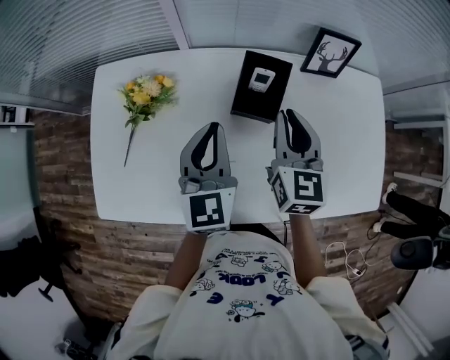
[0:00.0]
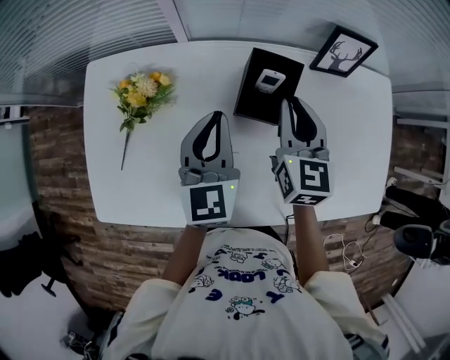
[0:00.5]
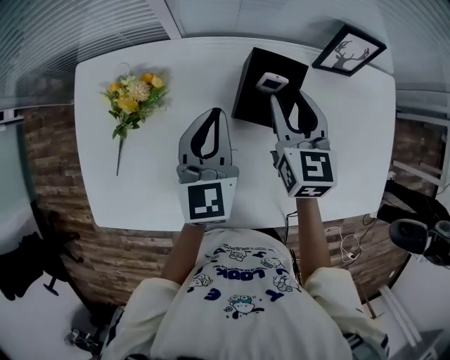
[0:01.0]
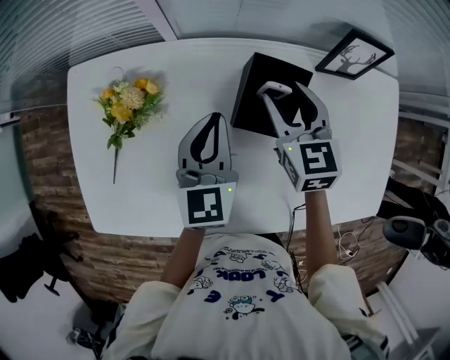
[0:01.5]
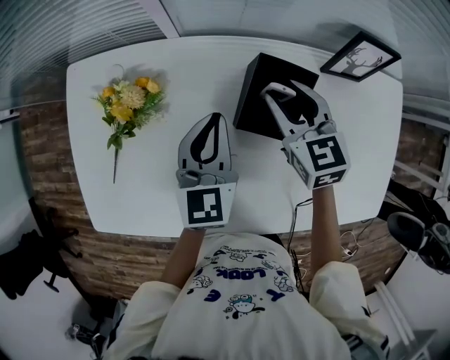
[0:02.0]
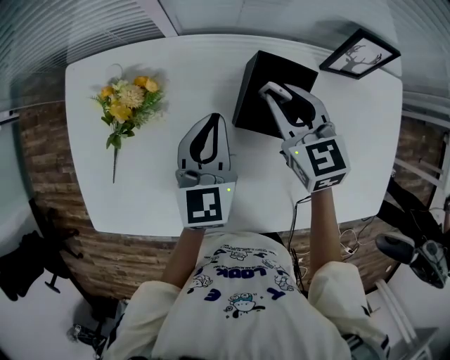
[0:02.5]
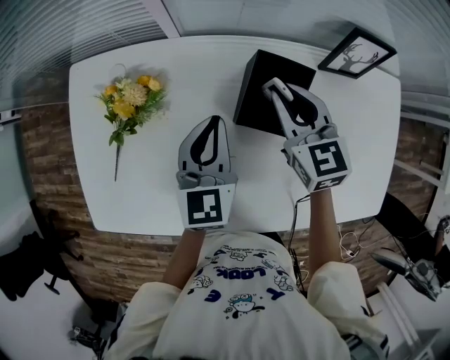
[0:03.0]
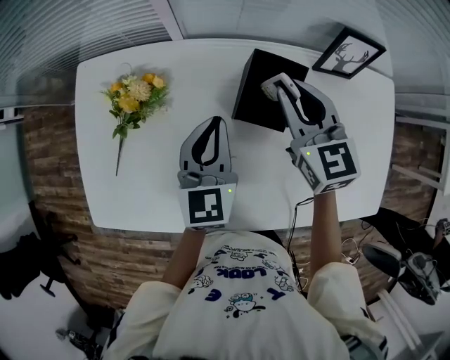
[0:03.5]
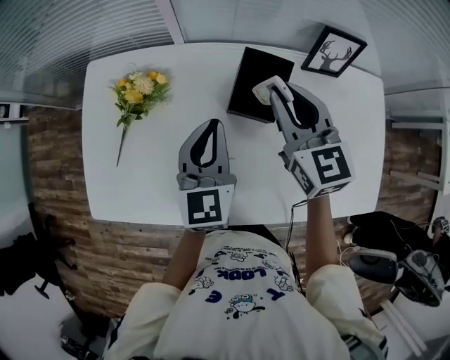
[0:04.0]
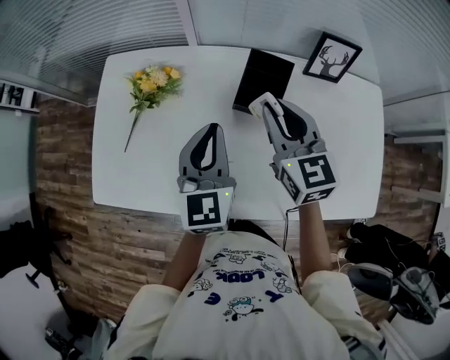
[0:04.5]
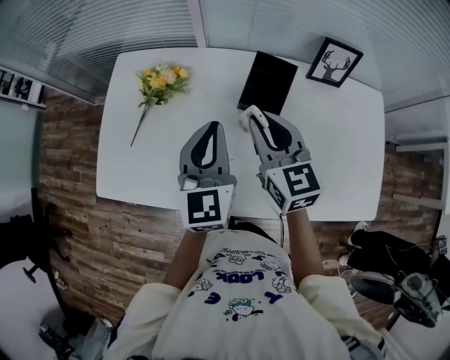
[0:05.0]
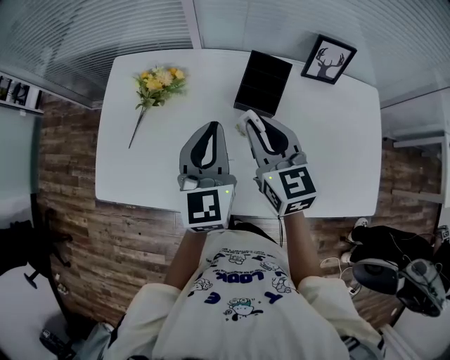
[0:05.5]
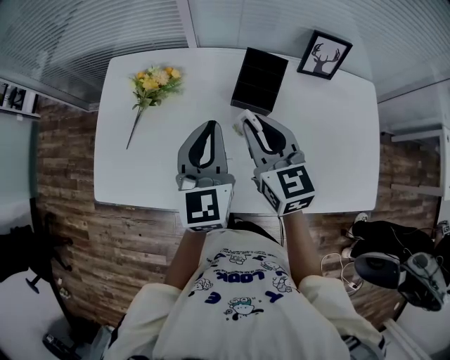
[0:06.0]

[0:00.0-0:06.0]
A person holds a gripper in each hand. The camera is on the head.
0:00.0 to 0:02.0: The grippers both shift forward and downward by roughly 15 cm. The right gripper changes its angle by some 30 degrees, and opens up.
0:02.0 to 0:04.0: The left gripper shifts roughly 10 cm backward and upward; the right gripper heads upward and backward, covering roughly 15 cm, and closes up.
0:04.0 to 0:06.0: The left gripper is displaced backward and upward by some 10 cm. The right gripper heads backward and to the left, covering some 15 cm.

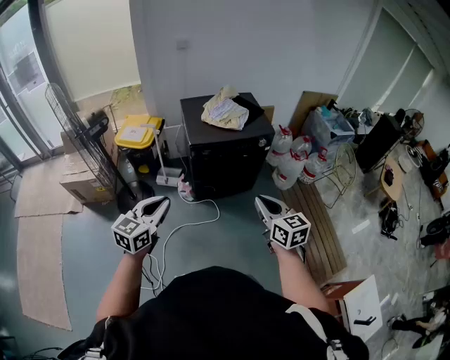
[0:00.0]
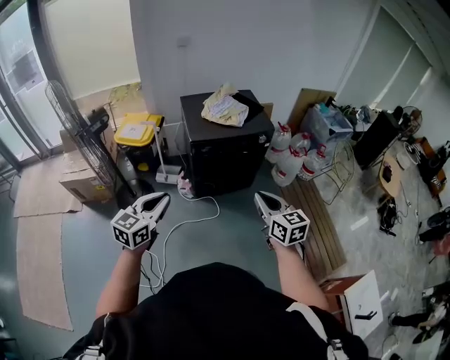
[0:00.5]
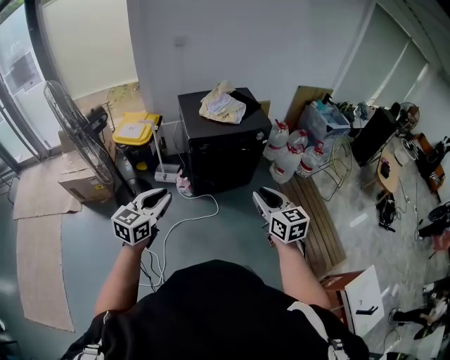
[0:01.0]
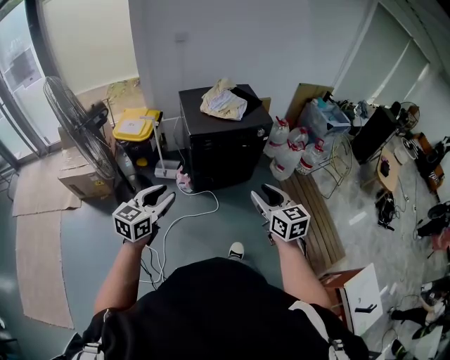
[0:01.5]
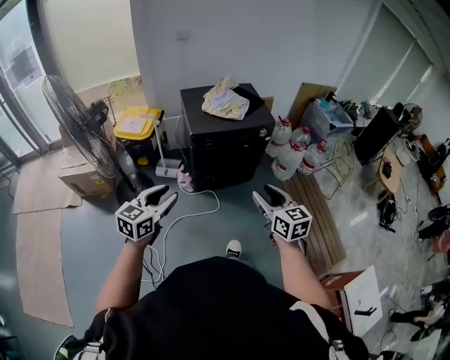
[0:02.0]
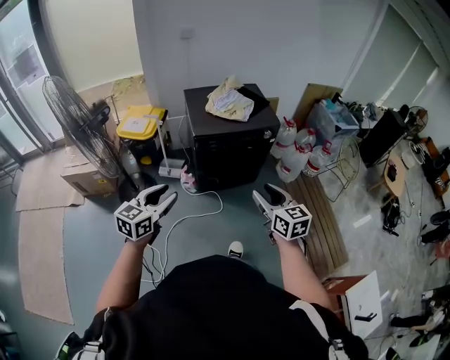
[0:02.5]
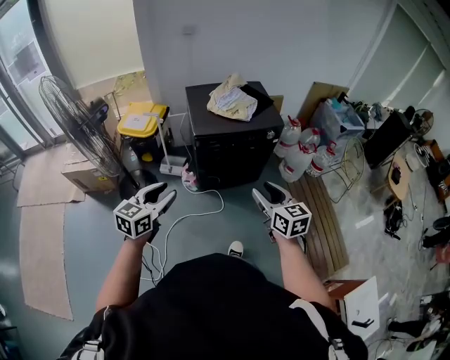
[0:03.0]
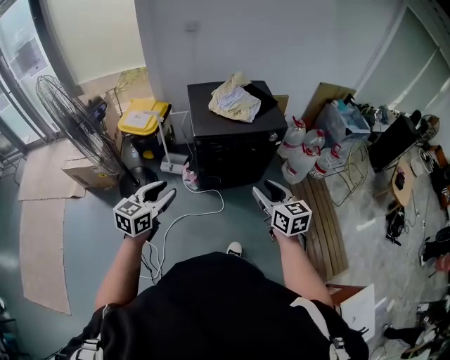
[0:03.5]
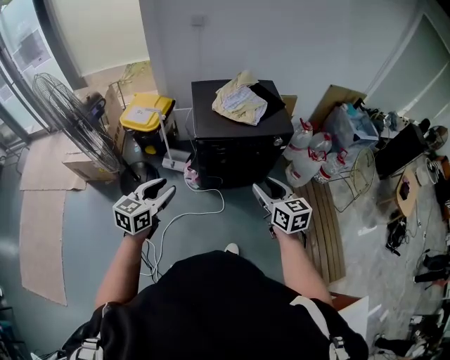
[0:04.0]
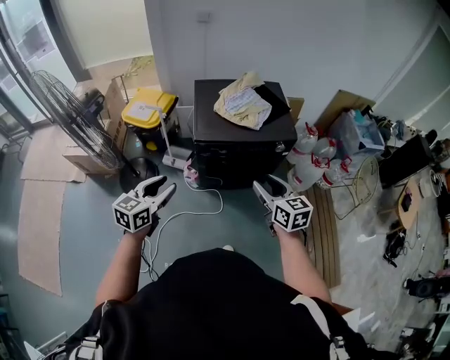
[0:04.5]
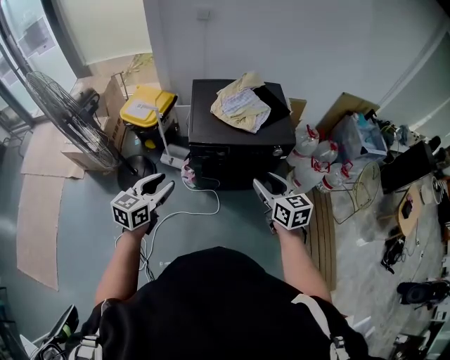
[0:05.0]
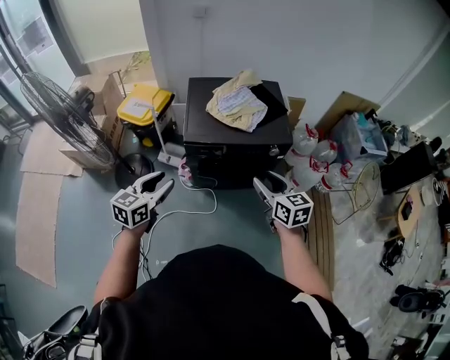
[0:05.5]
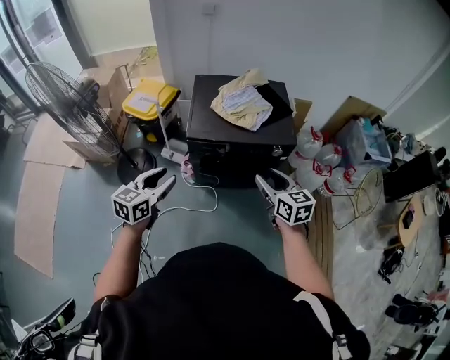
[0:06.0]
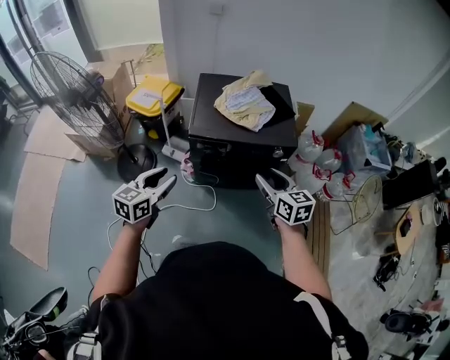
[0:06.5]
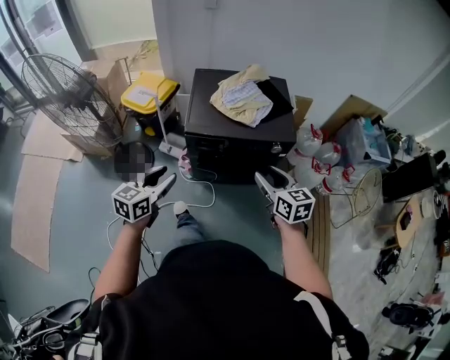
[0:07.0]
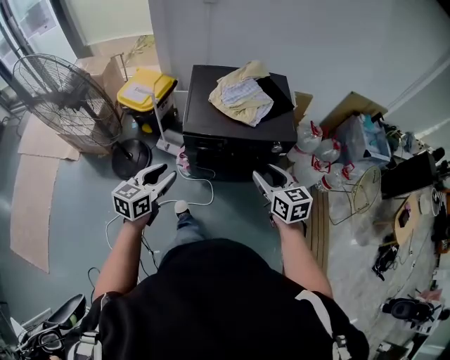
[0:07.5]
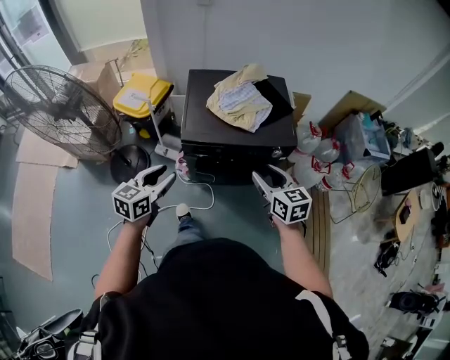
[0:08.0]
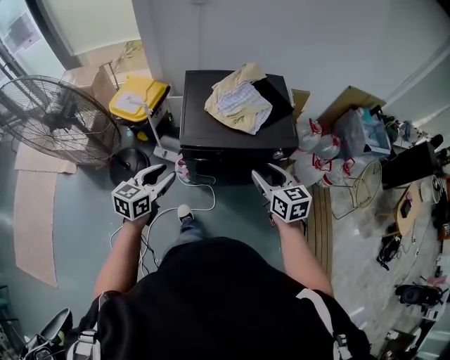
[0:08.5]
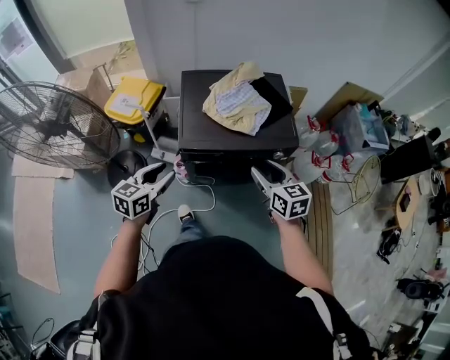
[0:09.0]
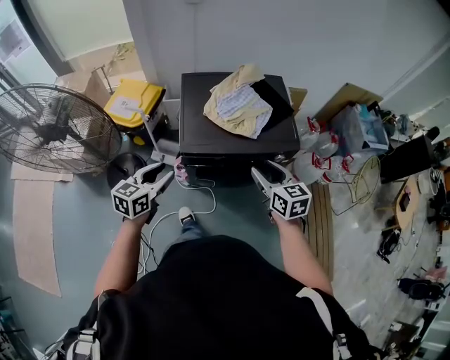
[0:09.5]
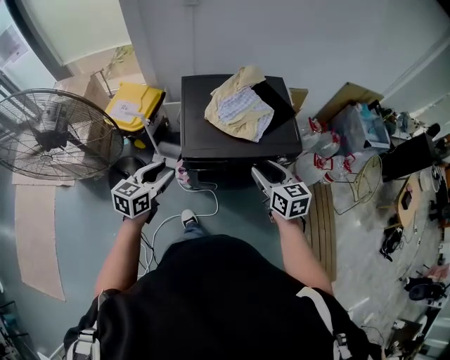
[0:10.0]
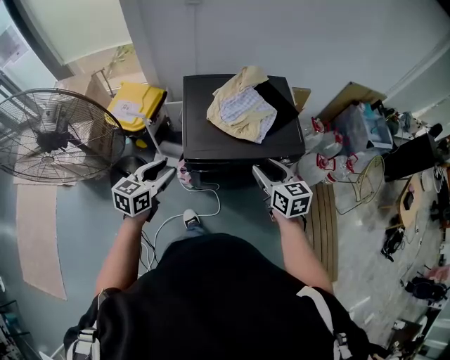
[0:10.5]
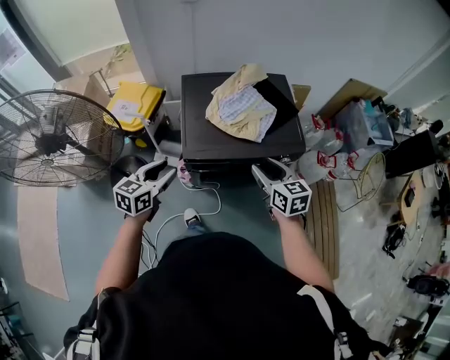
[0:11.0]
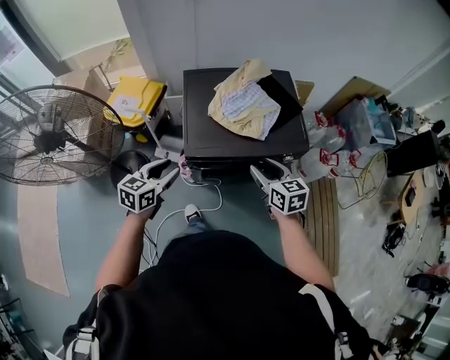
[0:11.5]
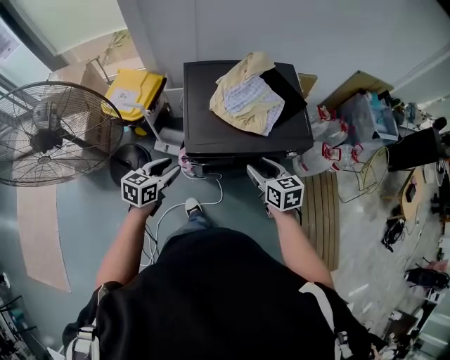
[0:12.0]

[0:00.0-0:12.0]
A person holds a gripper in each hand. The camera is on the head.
0:00.0 to 0:02.0: The right gripper opens; the left gripper opens up.
0:02.0 to 0:04.0: The grippers both shift forward by roughly 15 cm.
0:04.0 to 0:06.0: The right gripper is displaced forward and to the right by roughly 15 cm; the left gripper goes about 10 cm to the right and forward.
0:06.0 to 0:08.0: Both grippers travel together forward, roughly 5 cm.
0:08.0 to 0:10.0: The two grippers go some 10 cm forward.
0:10.0 to 0:12.0: Both grippers travel together downward, some 10 cm.

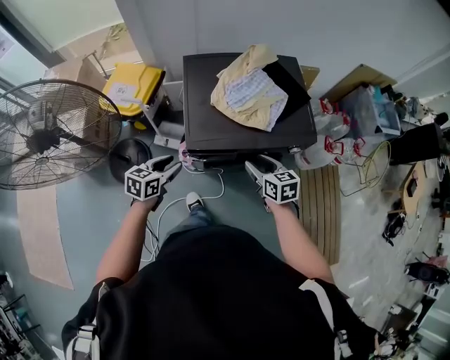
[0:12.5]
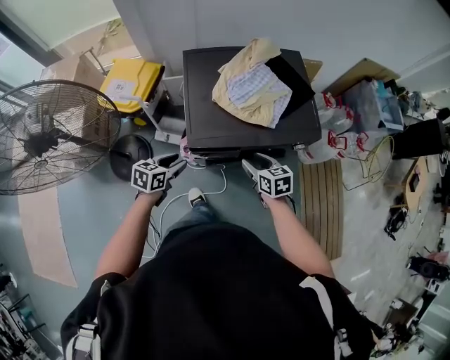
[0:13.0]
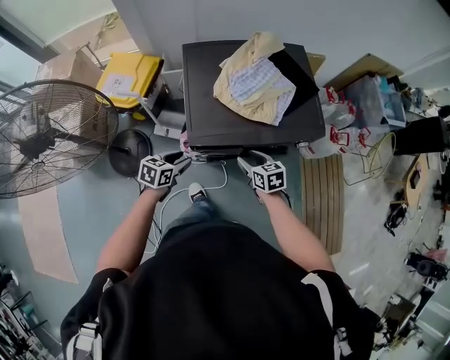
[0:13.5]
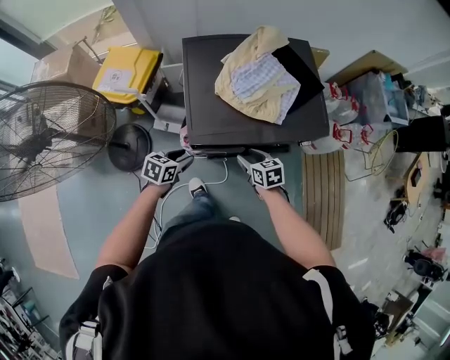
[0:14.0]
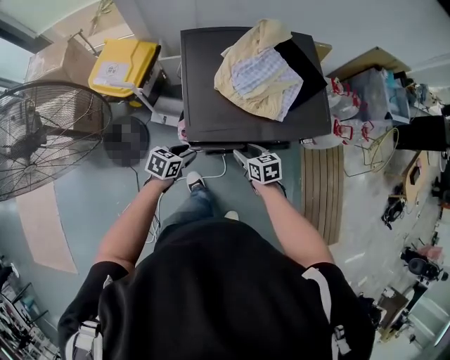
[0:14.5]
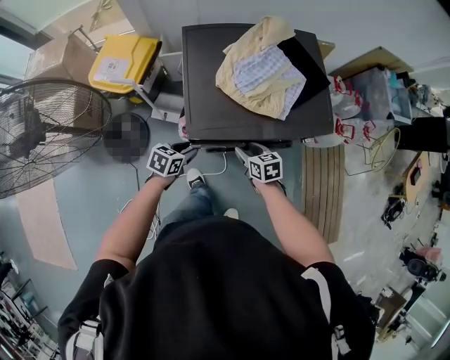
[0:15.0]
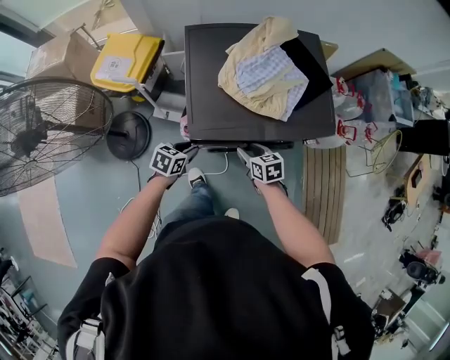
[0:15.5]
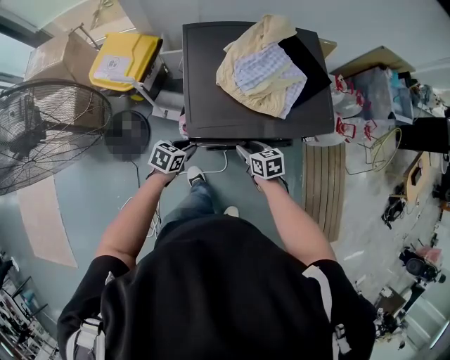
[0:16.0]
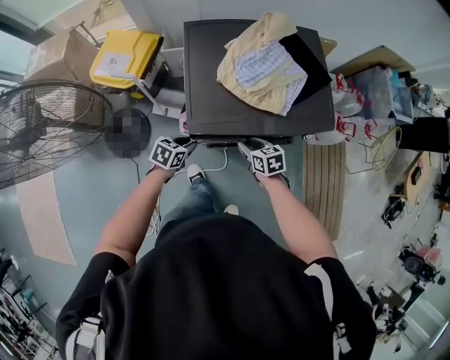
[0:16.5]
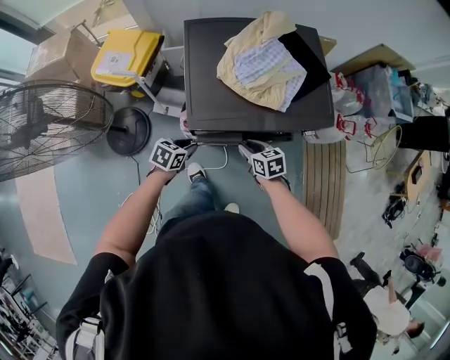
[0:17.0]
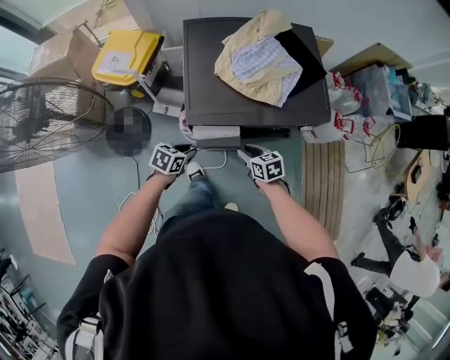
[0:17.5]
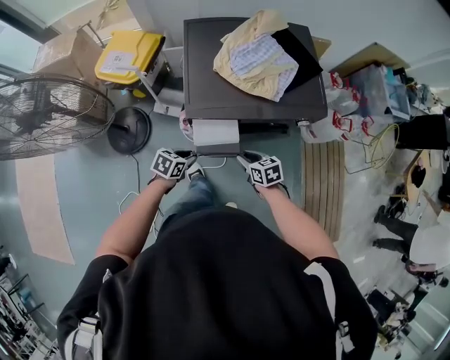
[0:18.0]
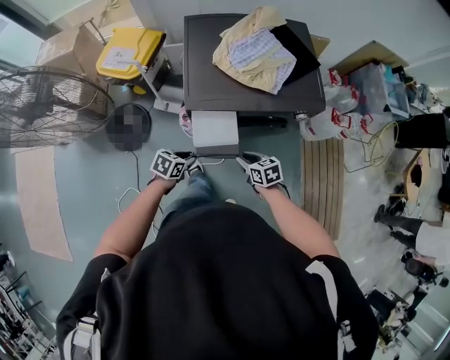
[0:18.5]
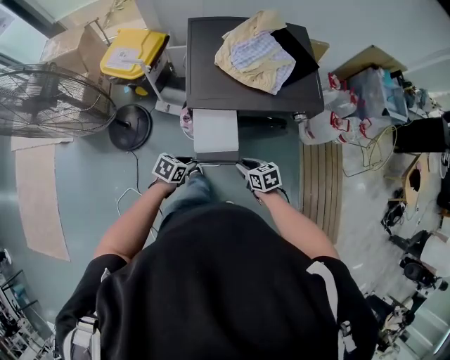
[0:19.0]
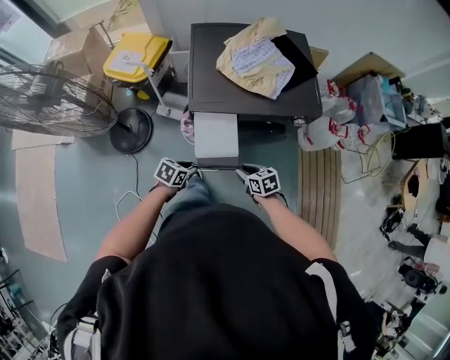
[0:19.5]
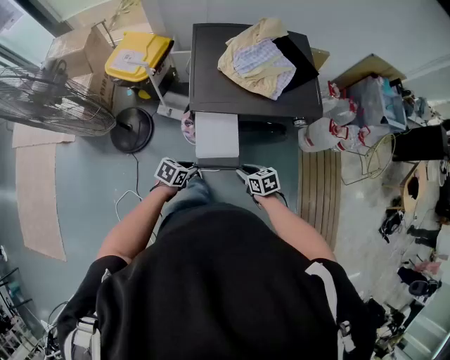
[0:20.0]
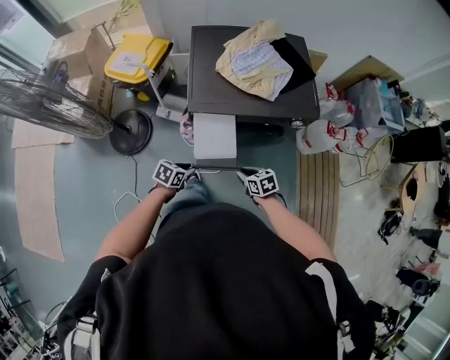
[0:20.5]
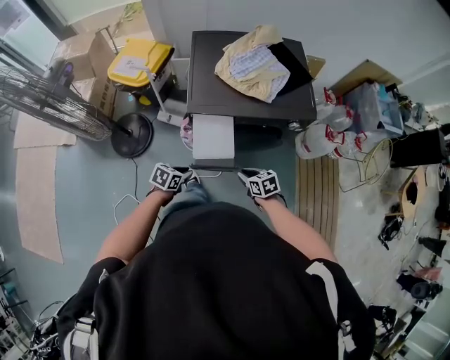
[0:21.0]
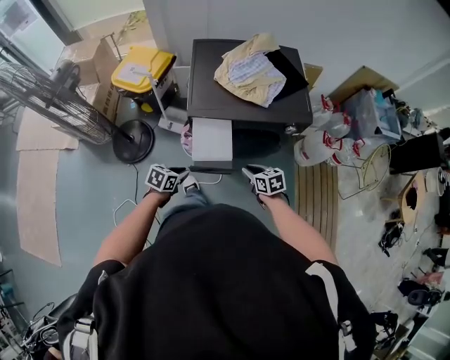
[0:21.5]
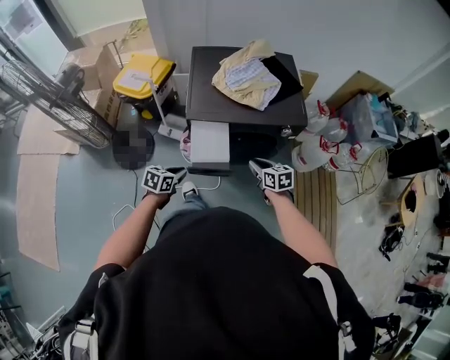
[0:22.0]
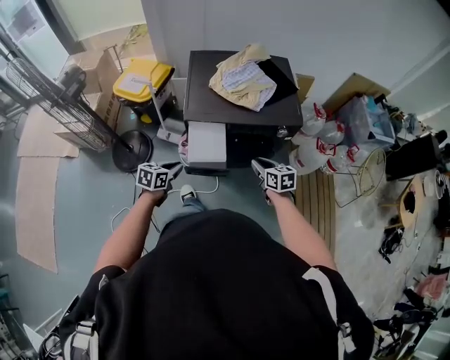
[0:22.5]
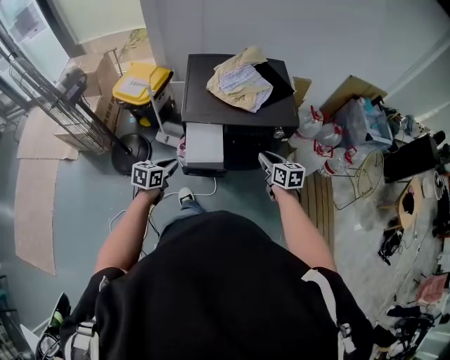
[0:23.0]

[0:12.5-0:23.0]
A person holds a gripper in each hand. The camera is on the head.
0:12.5 to 0:14.5: The grippers both shift downward by roughly 15 cm.
0:14.5 to 0:16.5: Both grippers stay put.
0:16.5 to 0:19.0: Both grippers travel together backward, some 20 cm.
0:19.0 to 0:21.0: The grippers move only a little.
0:21.0 to 0:23.0: The left gripper moves upward, approximately 15 cm, and turns by some 20 degrees, while the right gripper goes about 20 cm upward and to the right, and turns by some 30 degrees.
